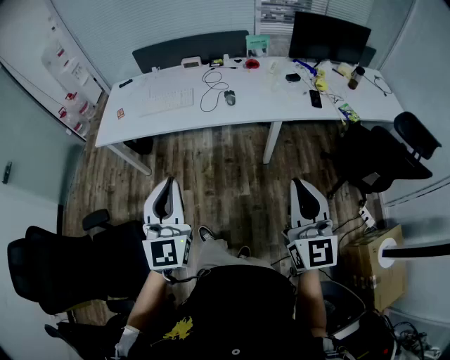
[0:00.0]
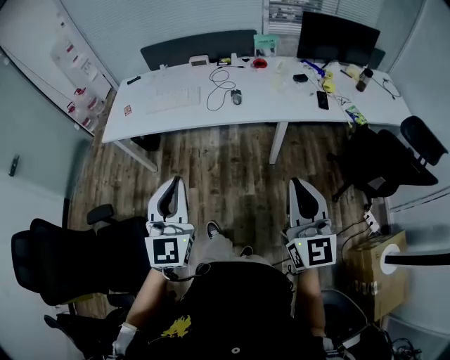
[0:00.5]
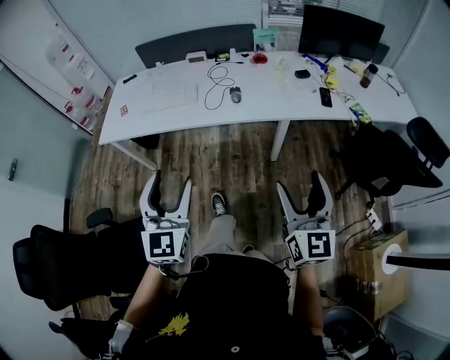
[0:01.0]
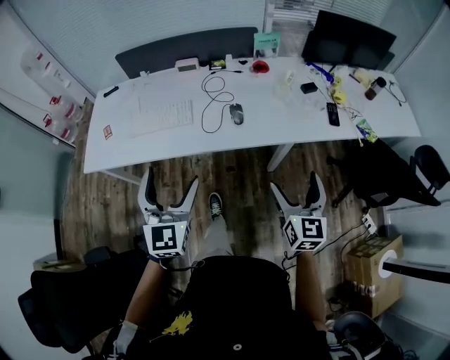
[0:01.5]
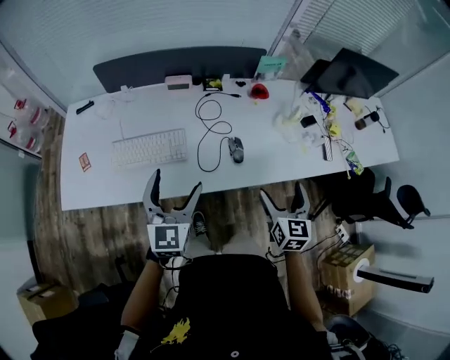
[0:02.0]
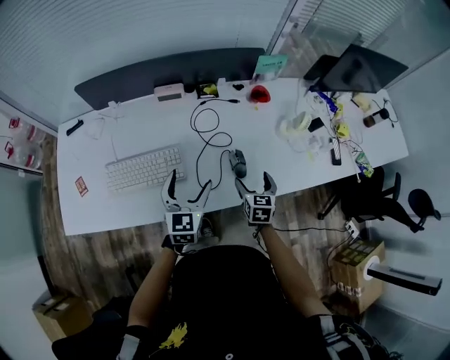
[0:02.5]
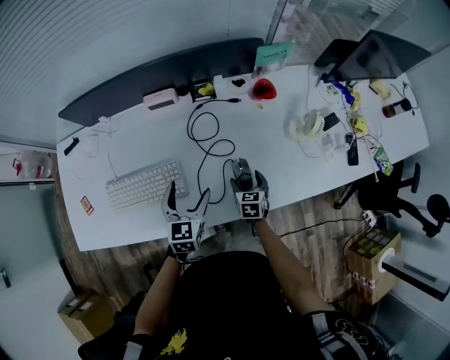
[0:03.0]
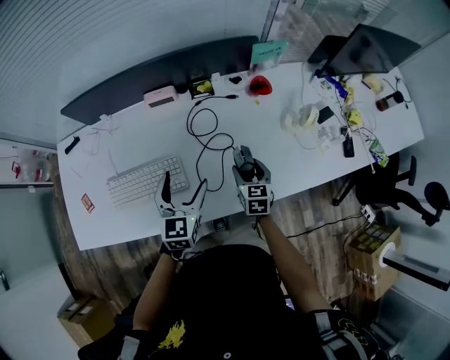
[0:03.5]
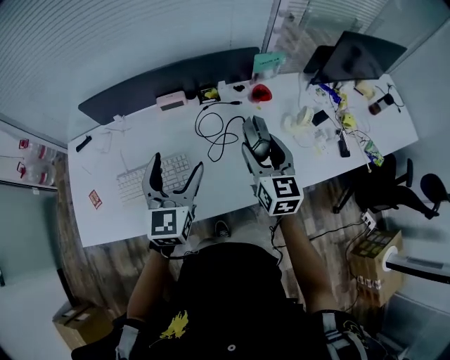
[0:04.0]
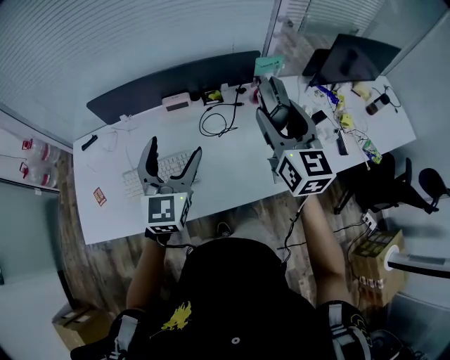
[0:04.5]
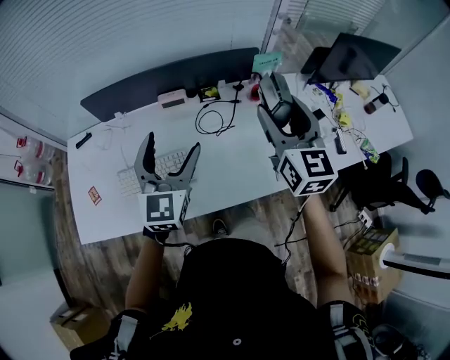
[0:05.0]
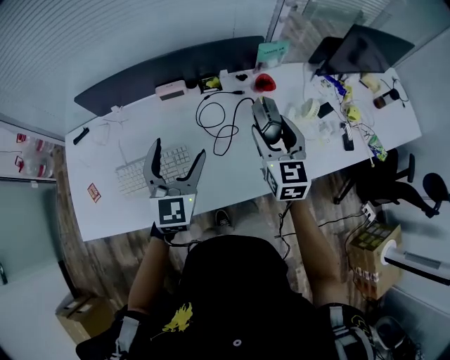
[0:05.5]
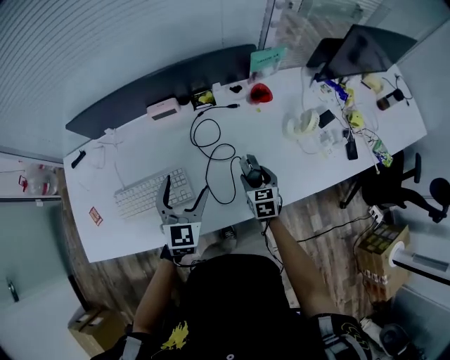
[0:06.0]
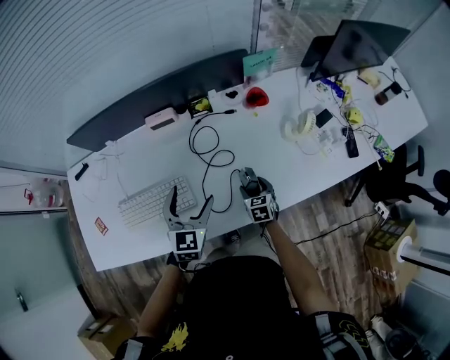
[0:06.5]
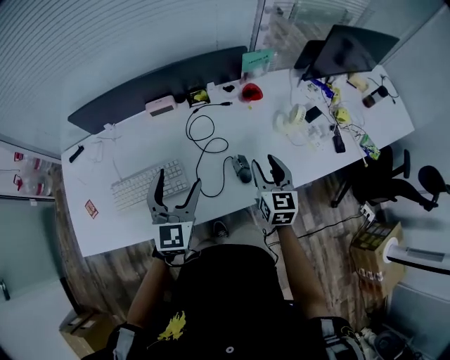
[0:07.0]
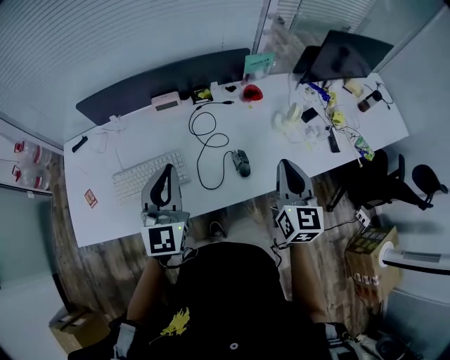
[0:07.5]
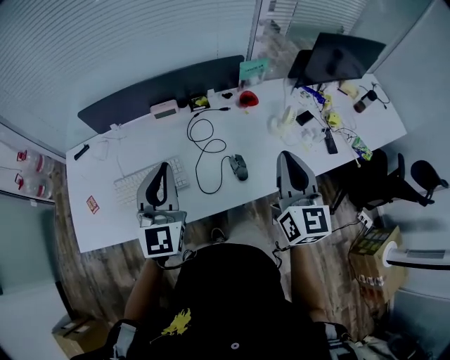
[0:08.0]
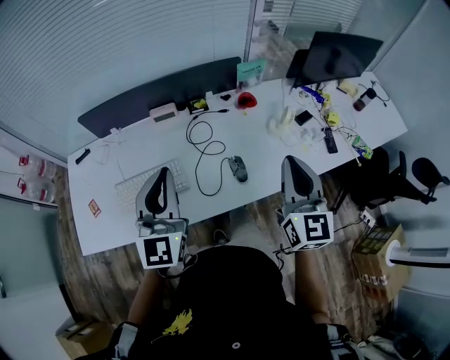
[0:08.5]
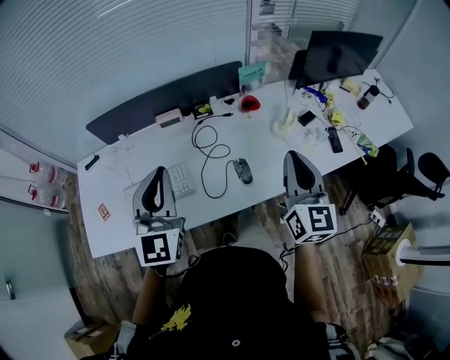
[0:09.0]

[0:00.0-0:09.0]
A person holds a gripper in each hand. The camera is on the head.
0:00.0 to 0:02.0: The pair of grippers is taken forward, about 60 cm. The right gripper rotates about 30 degrees, and opens up; the left gripper opens up.
0:02.0 to 0:04.5: The left gripper shifts approximately 15 cm forward, and travels downward and back again, some 20 cm each way; the right gripper goes roughly 25 cm forward and upward, turns by some 20 degrees, and closes.
0:04.5 to 0:07.0: The right gripper moves downward, some 20 cm, and changes its angle by about 20 degrees. The left gripper is displaced downward by approximately 10 cm.
0:07.0 to 0:09.0: The two grippers go roughly 20 cm upward and backward. The right gripper rotates roughly 20 degrees, and closes up. The left gripper closes its fingers.

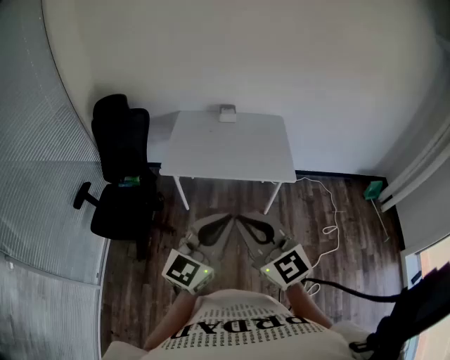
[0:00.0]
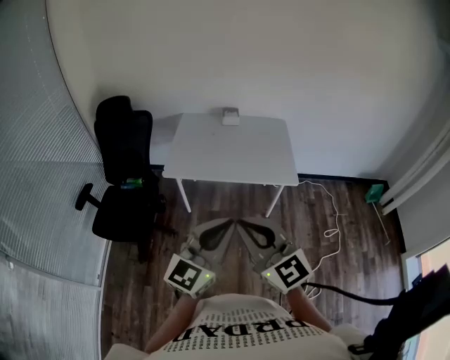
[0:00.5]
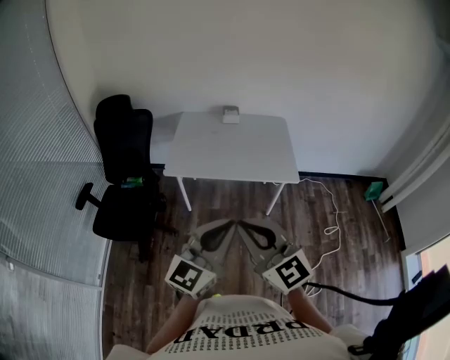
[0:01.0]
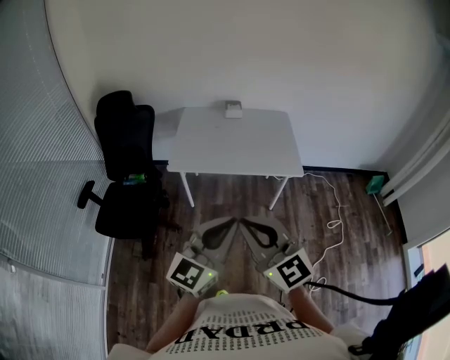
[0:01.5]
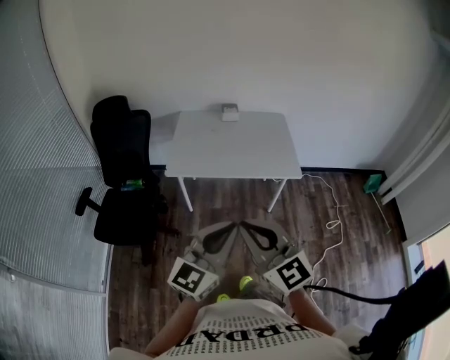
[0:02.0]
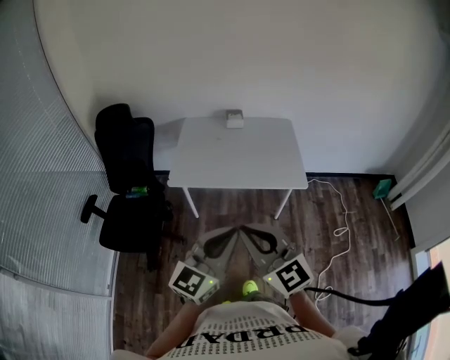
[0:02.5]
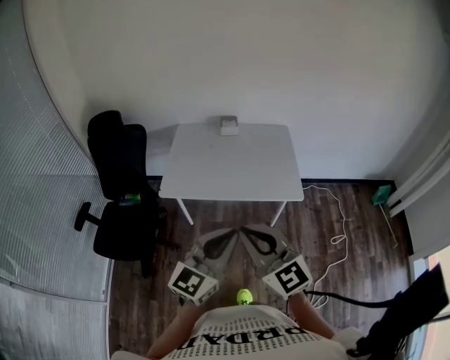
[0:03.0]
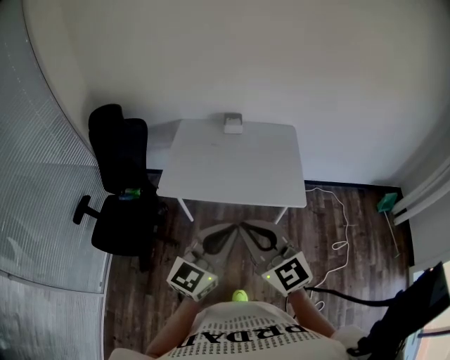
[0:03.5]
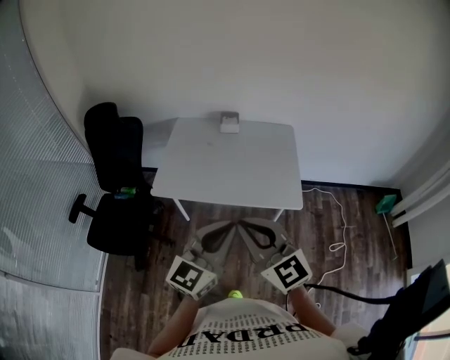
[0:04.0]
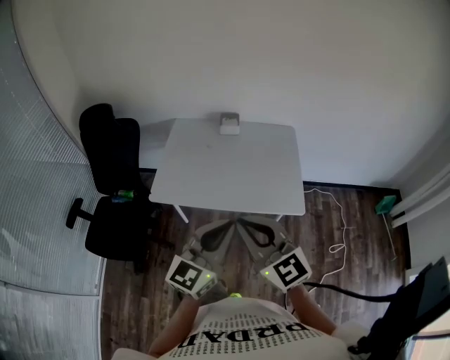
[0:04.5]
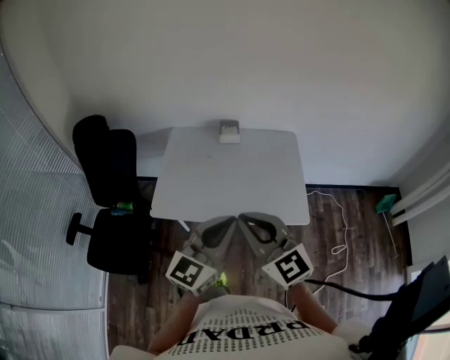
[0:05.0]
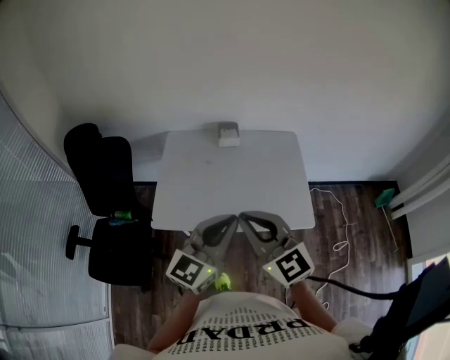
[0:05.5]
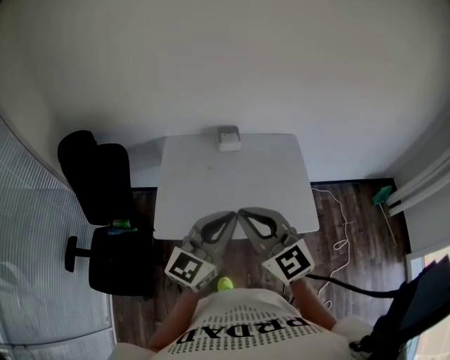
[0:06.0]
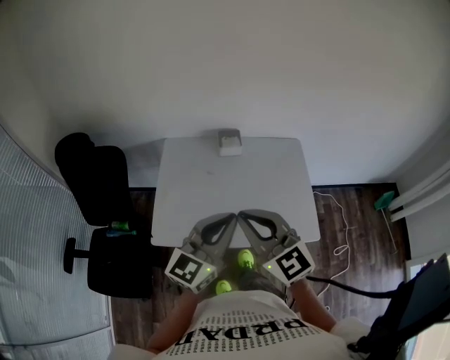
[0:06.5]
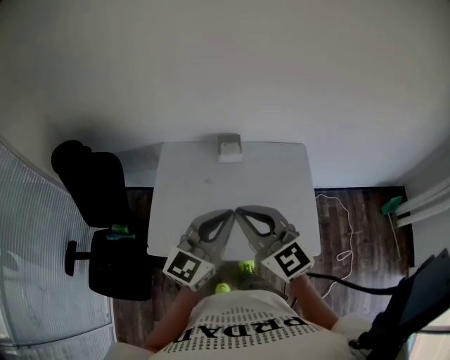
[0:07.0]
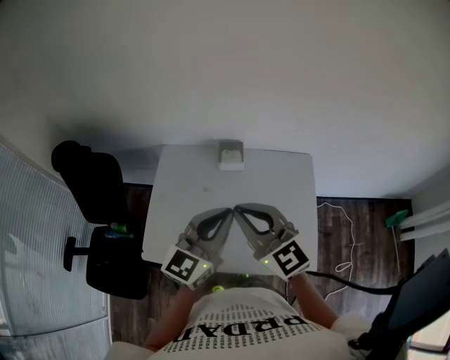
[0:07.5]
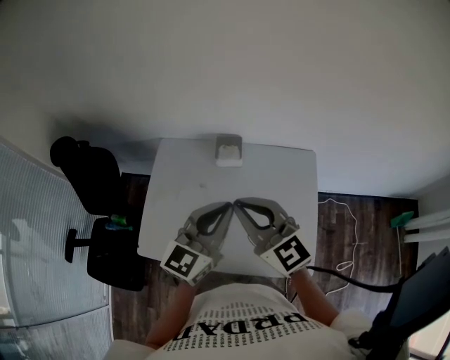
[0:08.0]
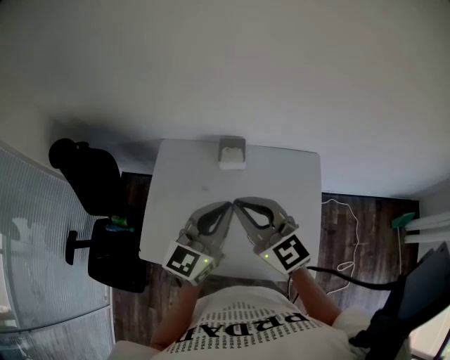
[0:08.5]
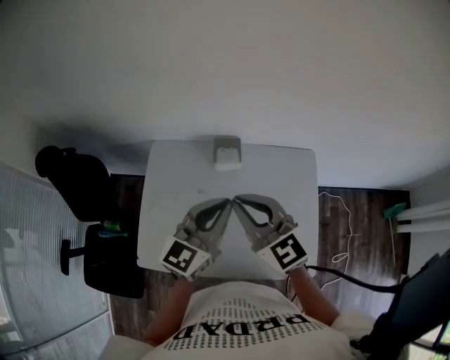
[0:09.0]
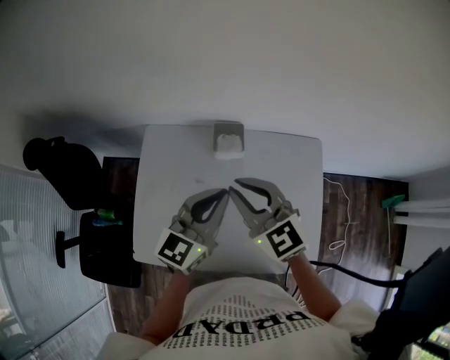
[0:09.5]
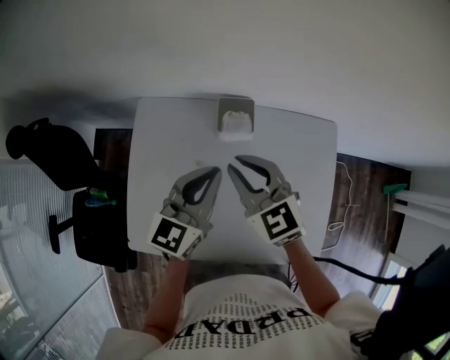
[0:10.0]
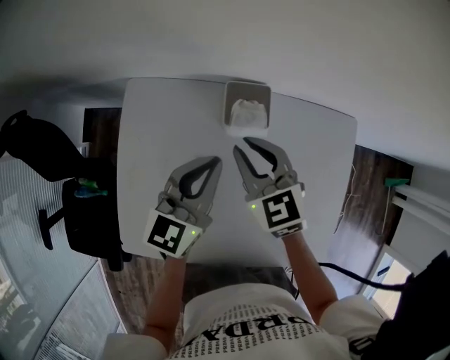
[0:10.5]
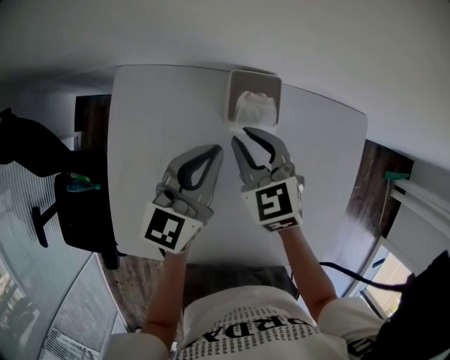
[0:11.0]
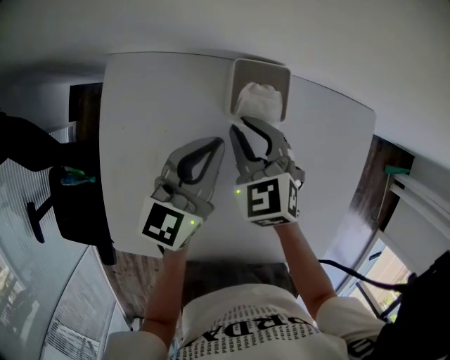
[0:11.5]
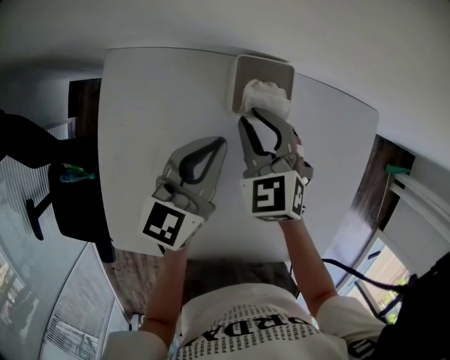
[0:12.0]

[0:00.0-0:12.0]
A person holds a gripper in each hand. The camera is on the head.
0:00.0 to 0:02.0: Both grippers move to the left, roughly 5 cm.
0:02.0 to 0:04.0: The two grippers go some 25 cm forward and to the right.
0:04.0 to 0:06.0: Both grippers move forward and to the left, approximately 25 cm.
0:06.0 to 0:08.0: The grippers both shift forward and to the right by roughly 25 cm.
0:08.0 to 0:10.0: The right gripper is displaced forward and downward by approximately 25 cm, and swivels roughly 20 degrees; the left gripper travels forward, downward and to the left by about 20 cm.
0:10.0 to 0:12.0: Both grippers move downward and forward, about 20 cm. The right gripper turns by some 20 degrees.

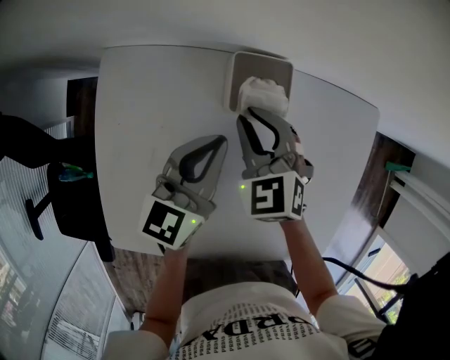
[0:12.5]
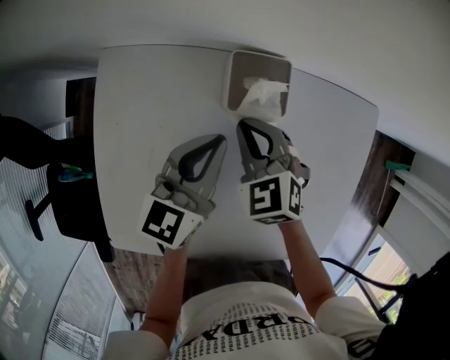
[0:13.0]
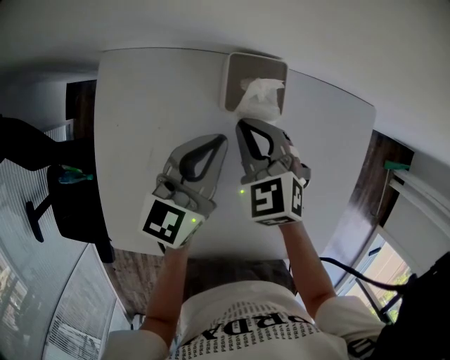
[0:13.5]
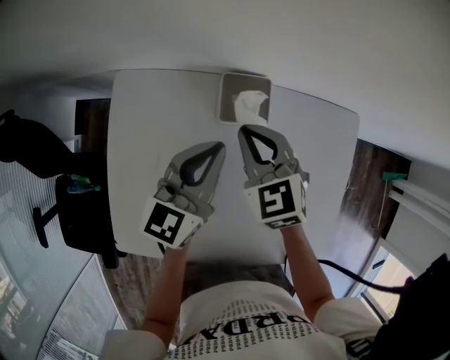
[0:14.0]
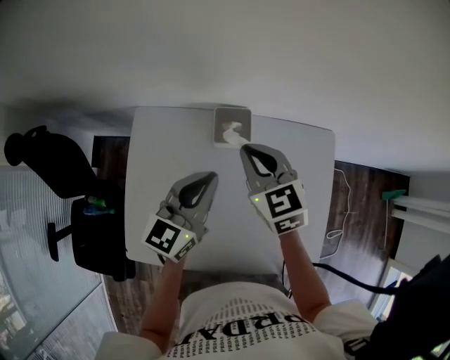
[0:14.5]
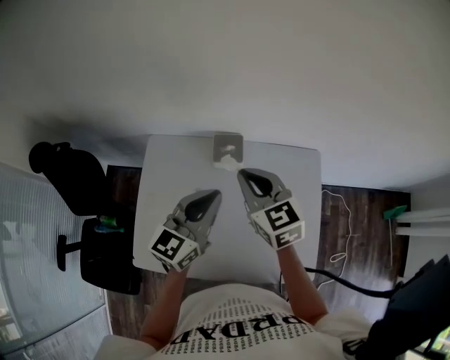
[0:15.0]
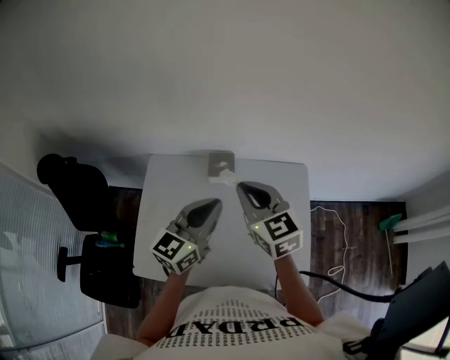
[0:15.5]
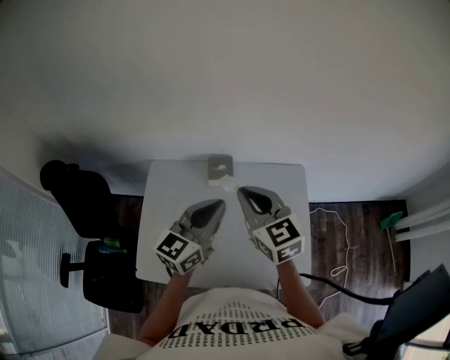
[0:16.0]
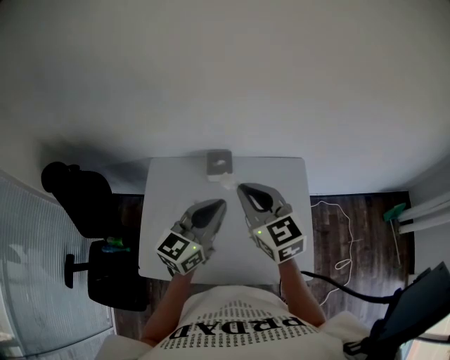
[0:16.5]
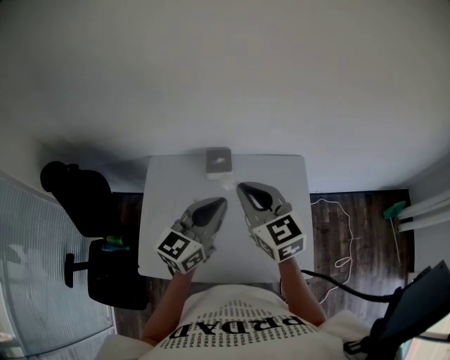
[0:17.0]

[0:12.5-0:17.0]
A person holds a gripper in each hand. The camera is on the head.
0:12.5 to 0:14.5: The right gripper heads upward, covering roughly 15 cm, and swivels about 20 degrees. Meanwhile the left gripper heads upward and backward, covering approximately 15 cm.
0:14.5 to 0:17.0: The two grippers go some 20 cm upward, backward and to the right.

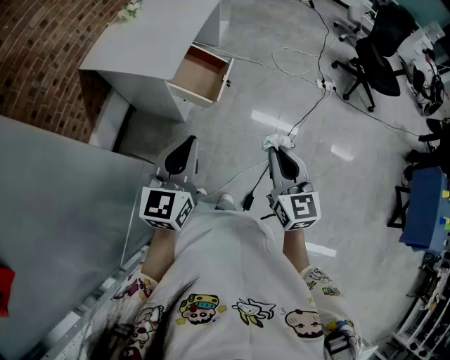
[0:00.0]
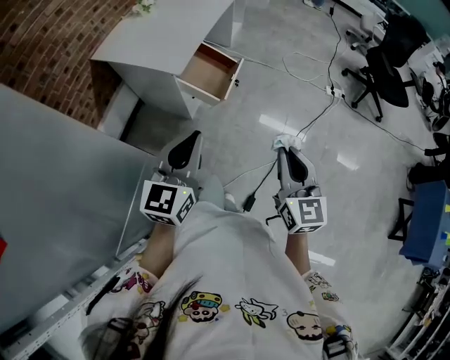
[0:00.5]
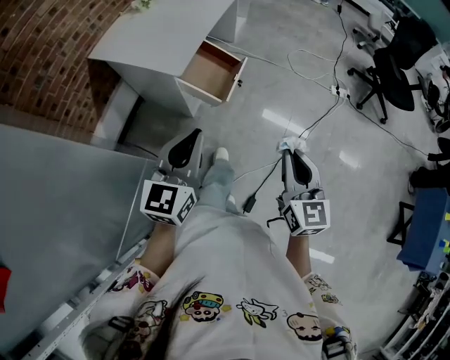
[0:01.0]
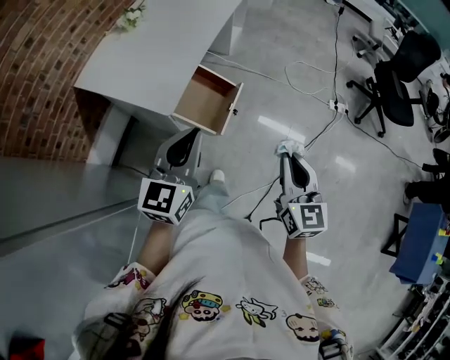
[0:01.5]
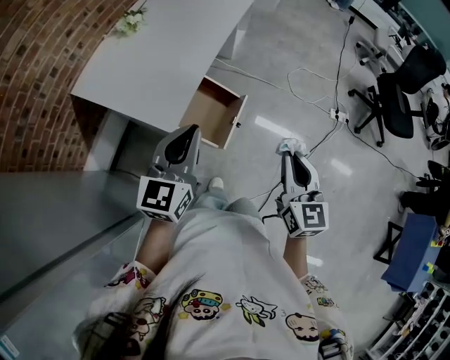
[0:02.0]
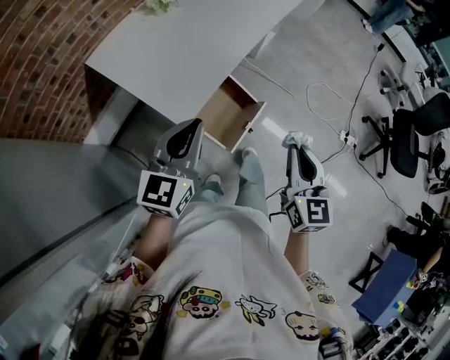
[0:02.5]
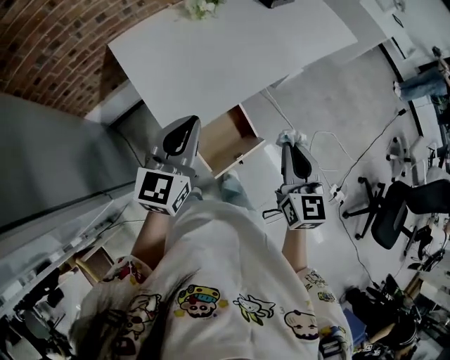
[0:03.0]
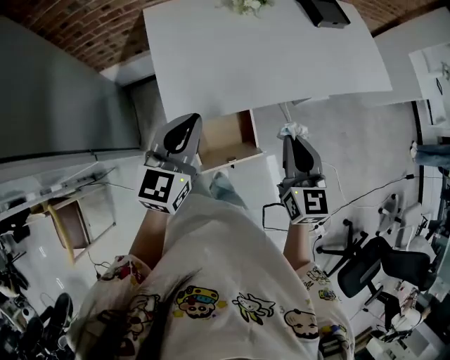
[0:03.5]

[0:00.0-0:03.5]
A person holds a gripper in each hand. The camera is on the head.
0:00.0 to 0:02.0: Both grippers move forward, some 30 cm.
0:02.0 to 0:03.5: The right gripper moves roughly 30 cm, and changes its angle by about 50 degrees; the left gripper shifts by some 15 cm, and swivels about 50 degrees.
